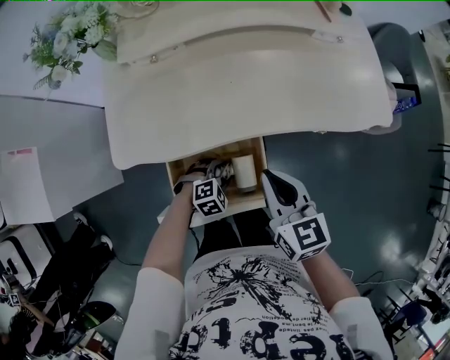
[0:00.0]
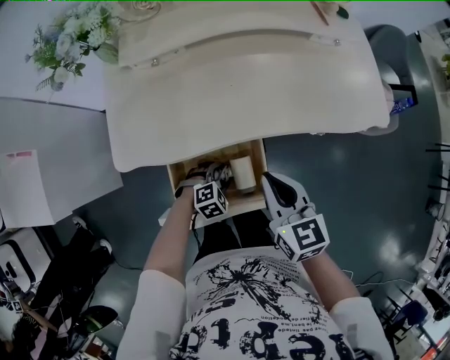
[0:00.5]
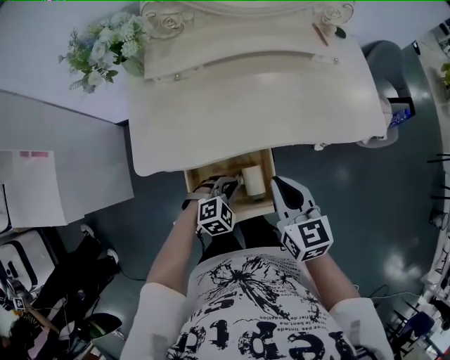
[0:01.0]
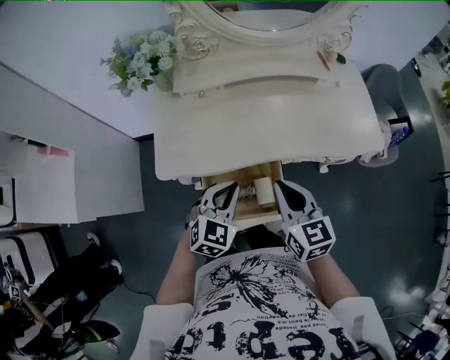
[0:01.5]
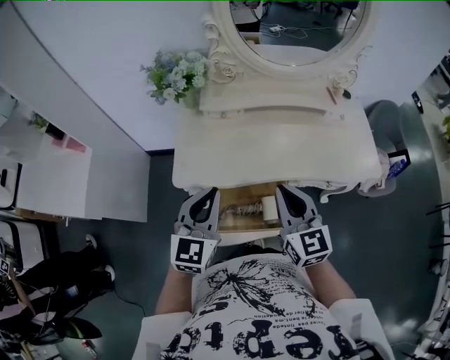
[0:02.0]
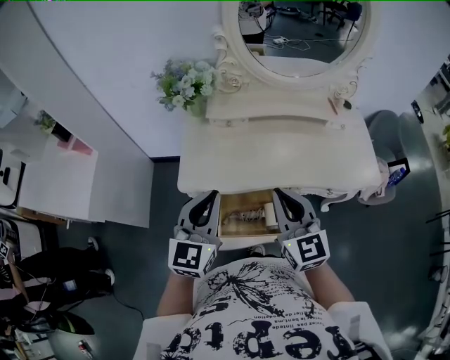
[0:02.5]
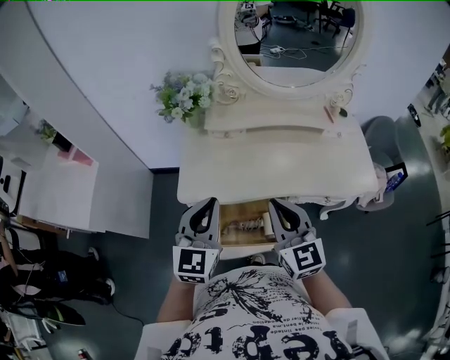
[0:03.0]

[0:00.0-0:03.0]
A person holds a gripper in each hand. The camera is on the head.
0:00.0 to 0:01.5: The right gripper goes approximately 10 cm upward. The left gripper travels upward by approximately 30 cm, points its fingers roughly 30 degrees further upward, and closes up.
0:01.5 to 0:03.0: The left gripper heads upward and to the left, covering about 20 cm, and turns by roughly 30 degrees. The right gripper heads upward and to the left, covering some 10 cm, and rotates about 20 degrees.

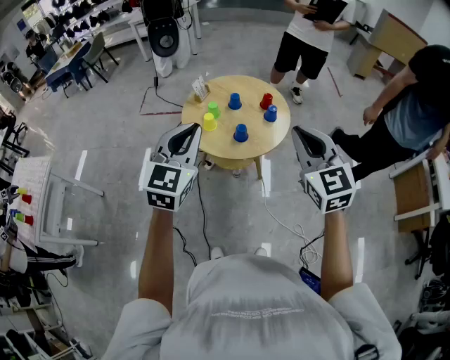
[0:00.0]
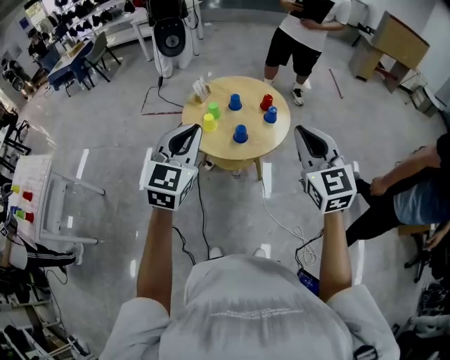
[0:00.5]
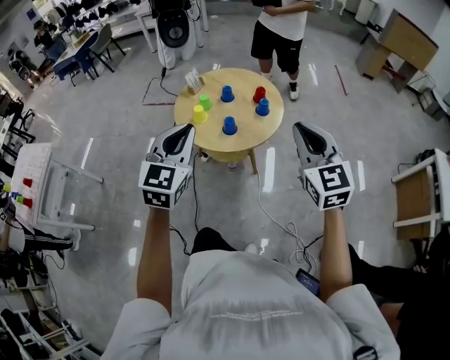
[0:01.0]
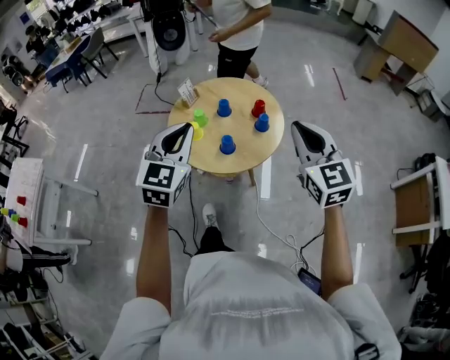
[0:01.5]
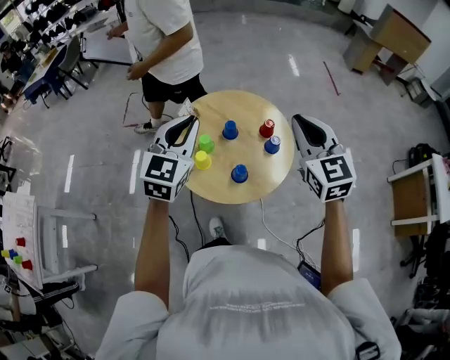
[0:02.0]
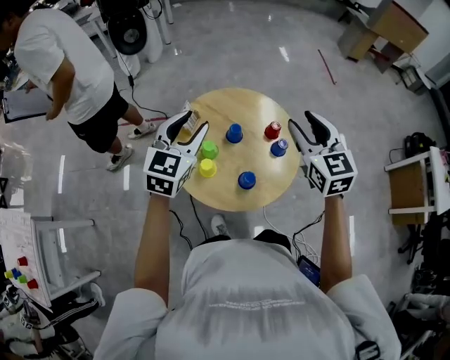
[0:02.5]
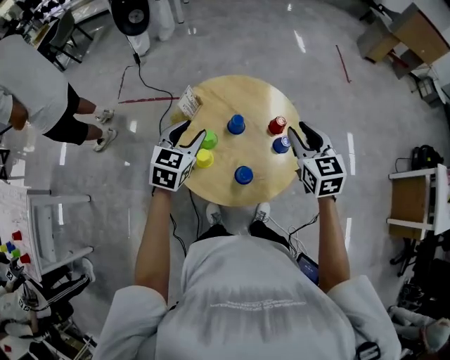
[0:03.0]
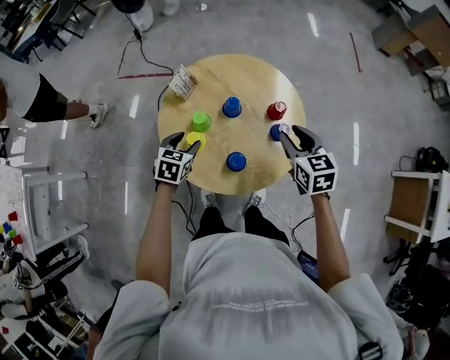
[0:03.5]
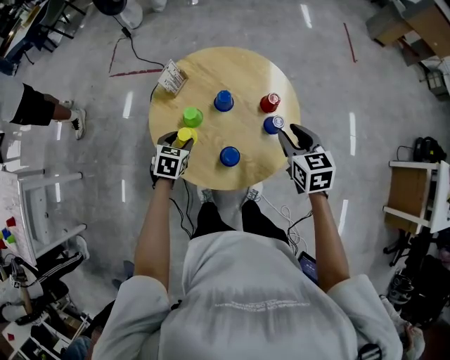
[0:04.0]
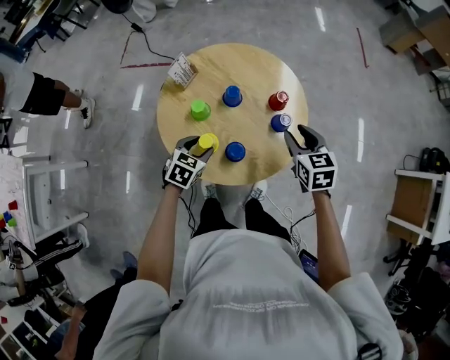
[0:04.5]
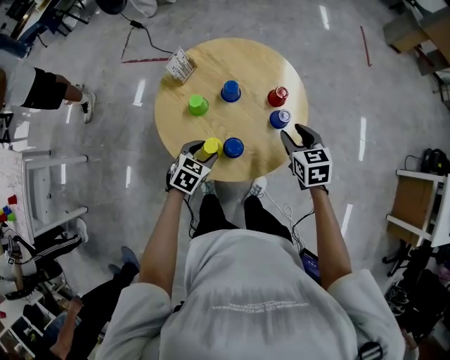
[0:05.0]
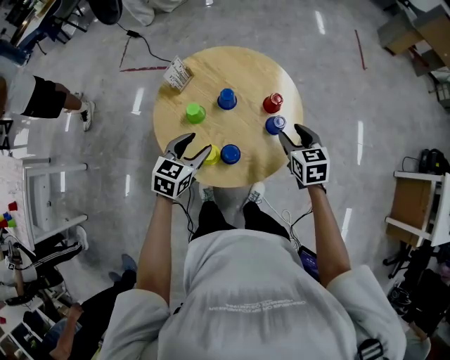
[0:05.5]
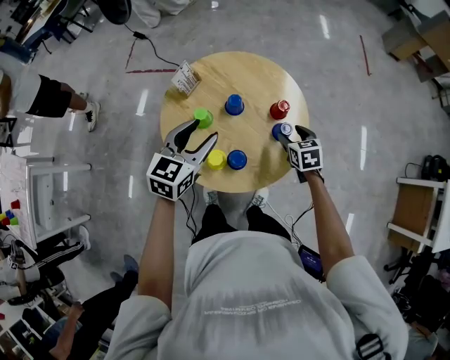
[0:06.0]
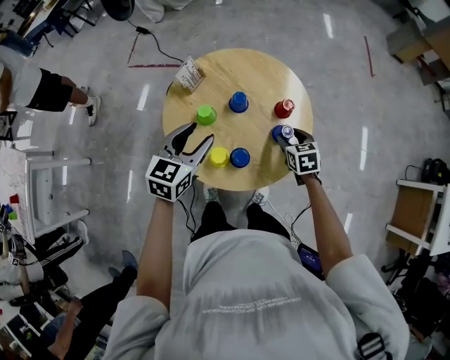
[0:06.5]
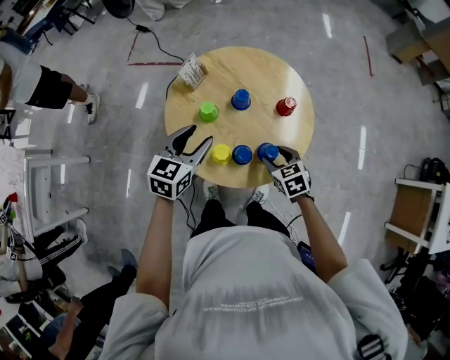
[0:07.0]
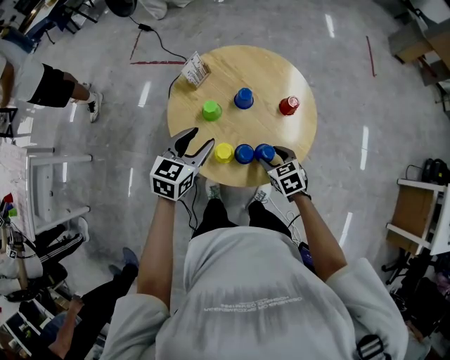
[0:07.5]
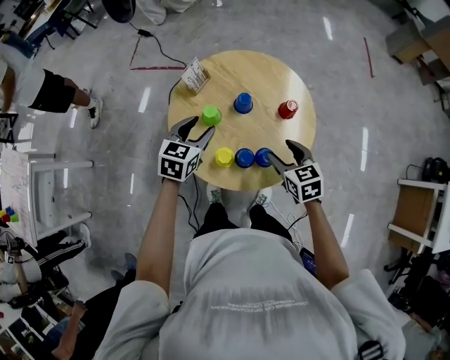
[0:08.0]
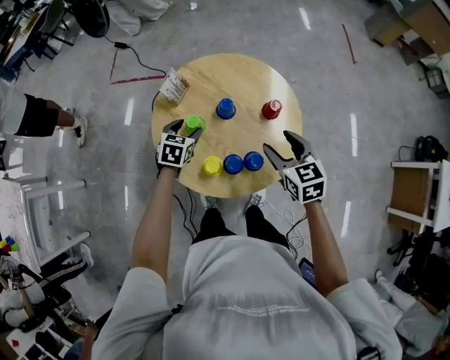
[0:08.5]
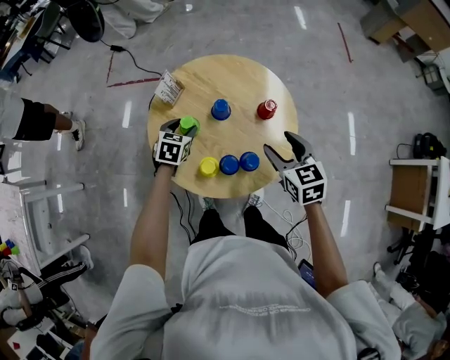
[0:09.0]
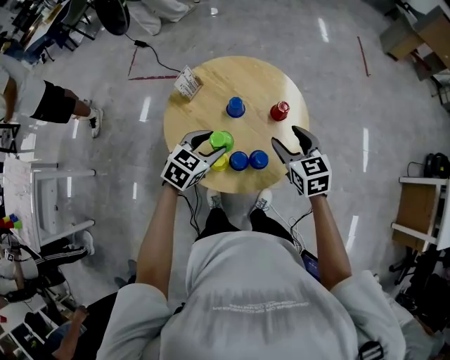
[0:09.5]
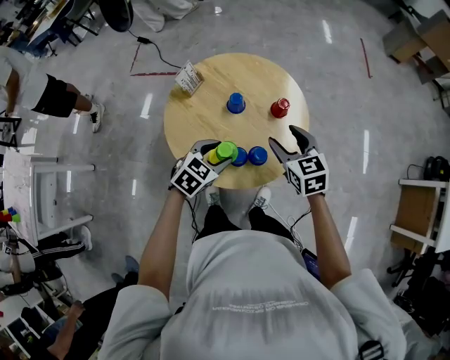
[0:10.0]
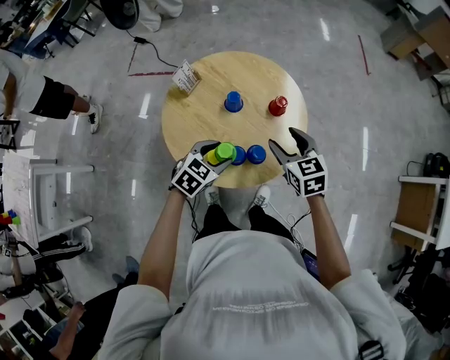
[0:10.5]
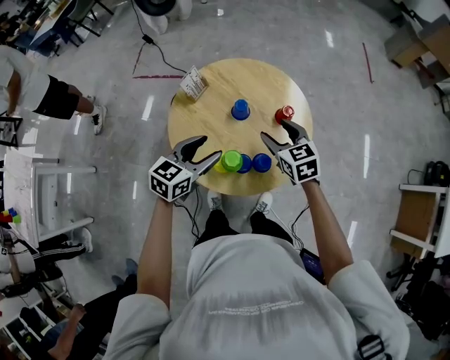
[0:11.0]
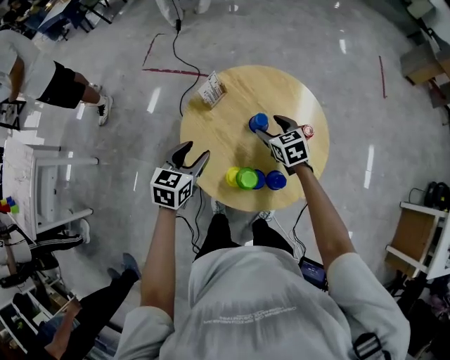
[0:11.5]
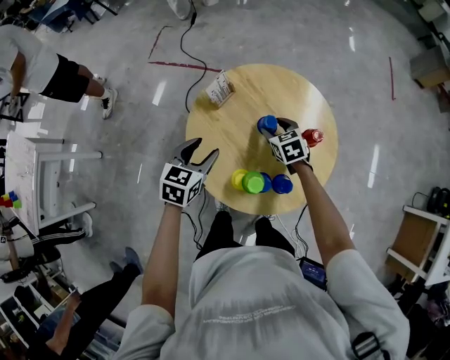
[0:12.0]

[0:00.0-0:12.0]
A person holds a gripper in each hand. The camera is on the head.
0:00.0 to 0:02.0: The grippers both shift forward by some 30 cm.
0:02.0 to 0:04.0: Both grippers travel together downward, some 30 cm. The left gripper points its fingers roughly 40 degrees further downward, and opens its fingers. The right gripper rotates roughly 30 degrees, and opens up.
0:04.0 to 0:06.0: The right gripper is displaced downward by some 10 cm, and opens its fingers. The left gripper moves upward, roughly 20 cm, and swivels roughly 30 degrees.
0:06.0 to 0:08.0: The right gripper goes some 15 cm to the left, backward and upward, while the left gripper travels downward by some 10 cm.
0:08.0 to 0:10.0: The left gripper travels to the right and backward by approximately 15 cm, and rotates approximately 30 degrees. The right gripper travels upward by about 5 cm.
0:10.0 to 0:12.0: The right gripper heads downward, forward and to the left, covering roughly 25 cm; the left gripper moves to the left and forward, roughly 20 cm, and changes its angle by about 30 degrees.

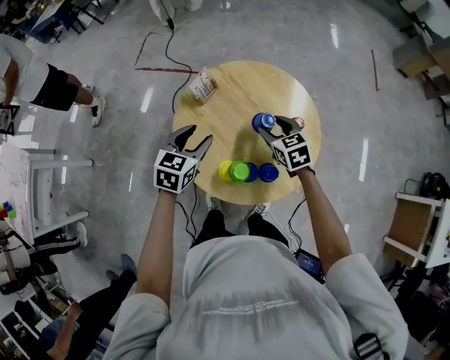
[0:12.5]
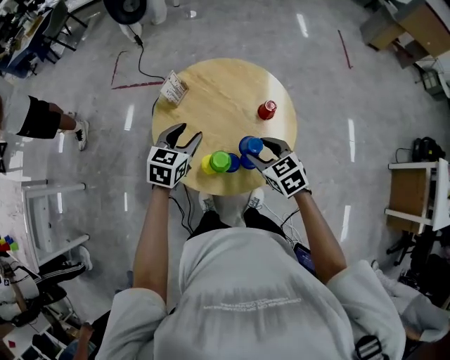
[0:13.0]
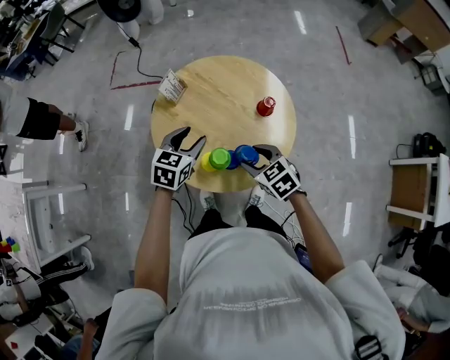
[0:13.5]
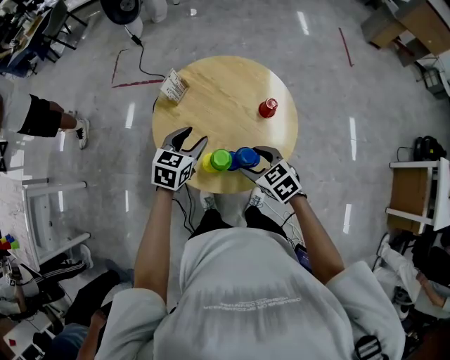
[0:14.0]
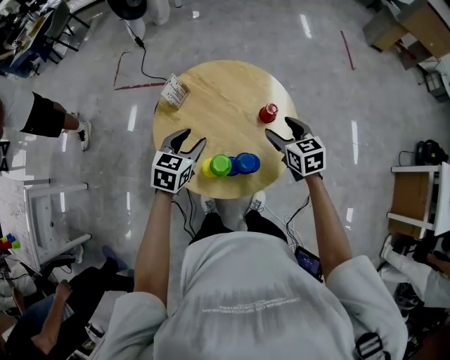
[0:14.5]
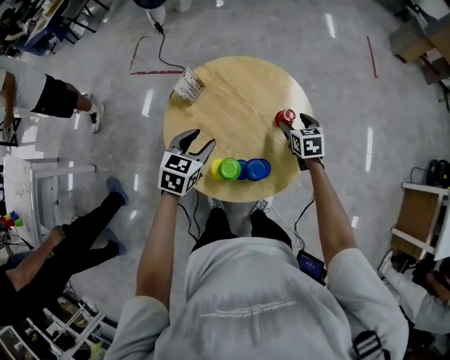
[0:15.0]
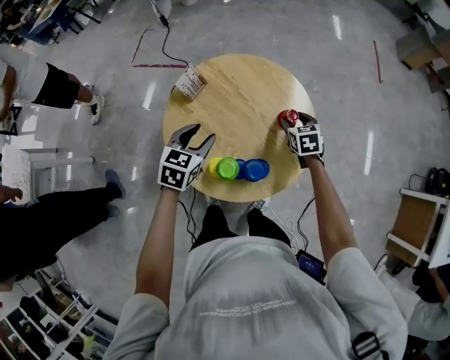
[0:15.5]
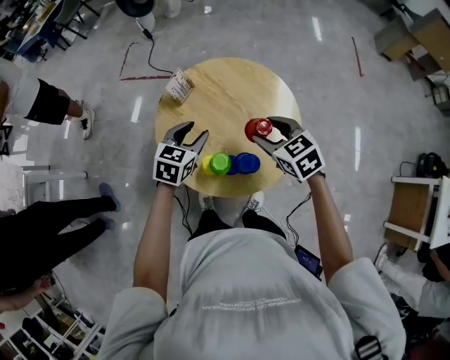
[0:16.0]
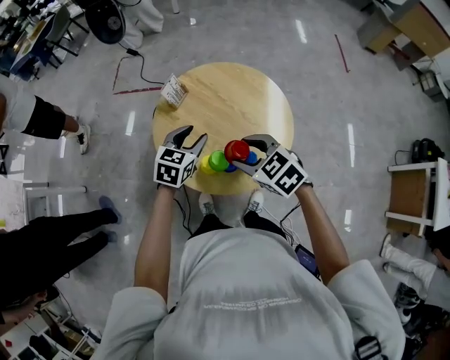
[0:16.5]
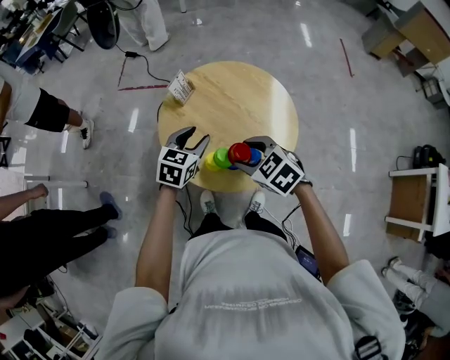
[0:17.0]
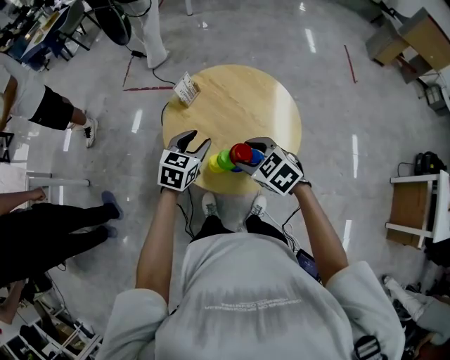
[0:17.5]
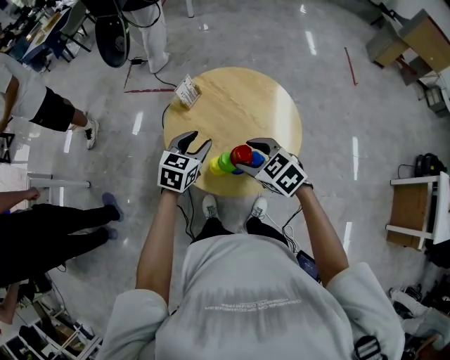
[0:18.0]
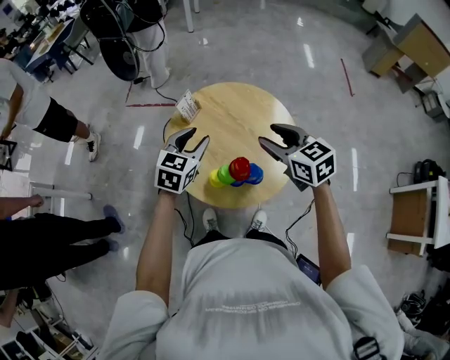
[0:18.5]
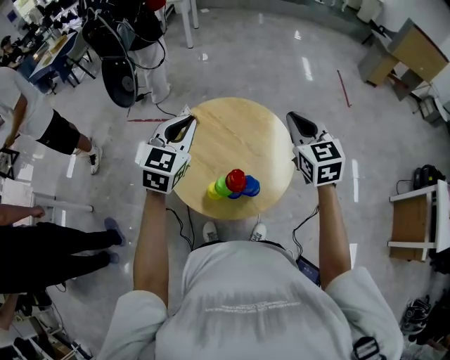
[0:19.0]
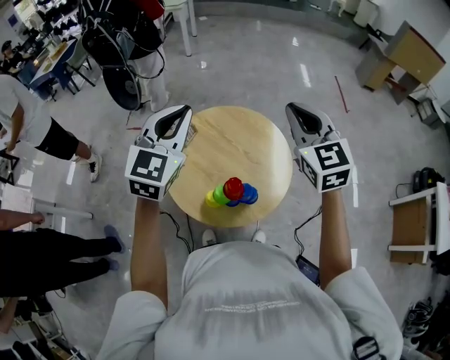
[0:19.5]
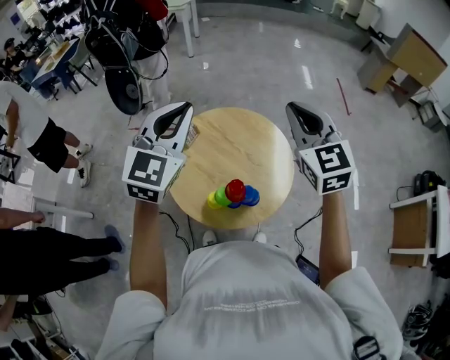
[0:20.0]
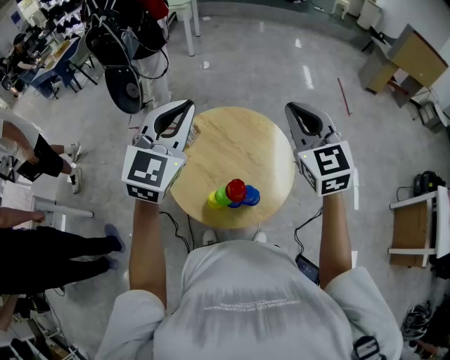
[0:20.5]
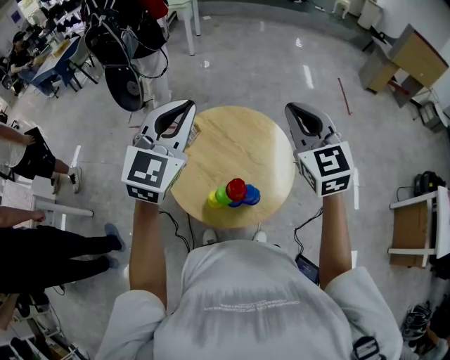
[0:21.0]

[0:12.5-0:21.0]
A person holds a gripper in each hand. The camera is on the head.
0:12.5 to 0:14.5: The right gripper shifts approximately 10 cm to the right, and moves about 15 cm backward and comes back, while the left gripper heads to the right, covering approximately 5 cm.
0:14.5 to 0:16.5: The right gripper shifts approximately 20 cm to the left, backward and upward, and changes its angle by approximately 30 degrees.
0:16.5 to 0:19.0: The right gripper heads upward, to the right and forward, covering about 25 cm, changes its angle by some 40 degrees, and closes; the left gripper moves upward, some 20 cm, changes its angle by about 20 degrees, and closes up.
0:19.0 to 0:21.0: The two grippers go approximately 10 cm upward.

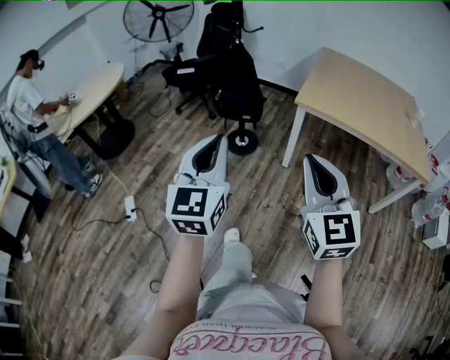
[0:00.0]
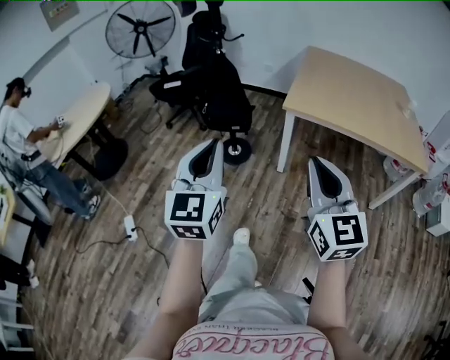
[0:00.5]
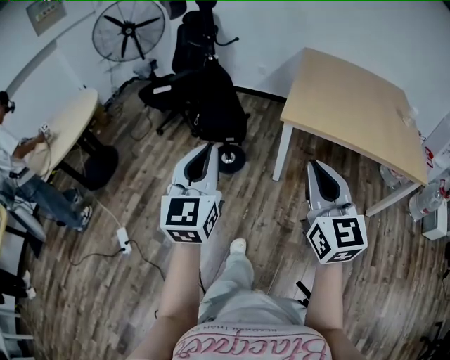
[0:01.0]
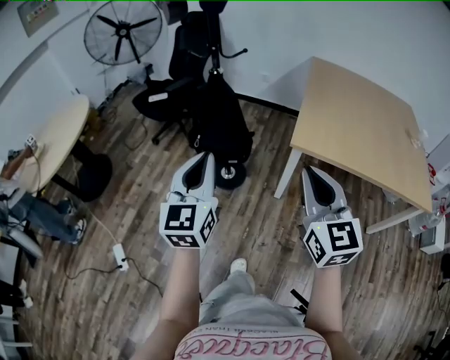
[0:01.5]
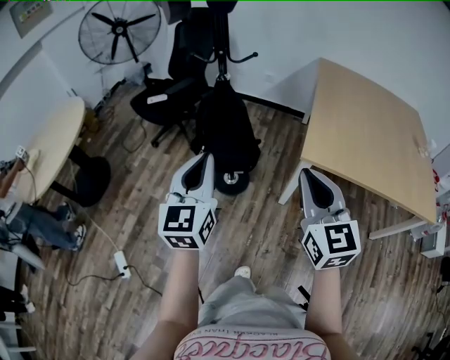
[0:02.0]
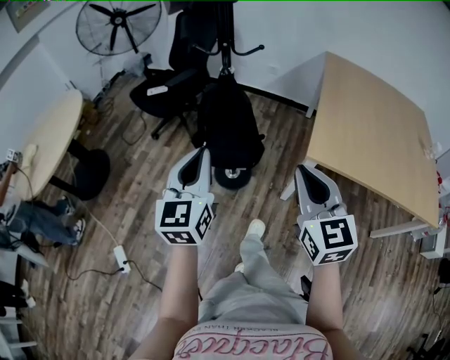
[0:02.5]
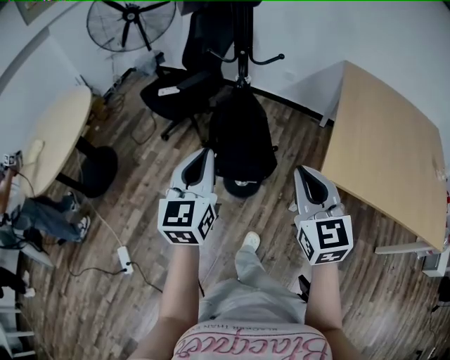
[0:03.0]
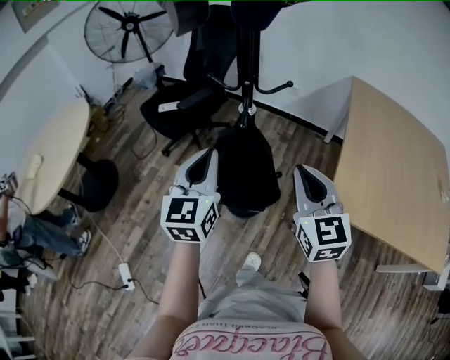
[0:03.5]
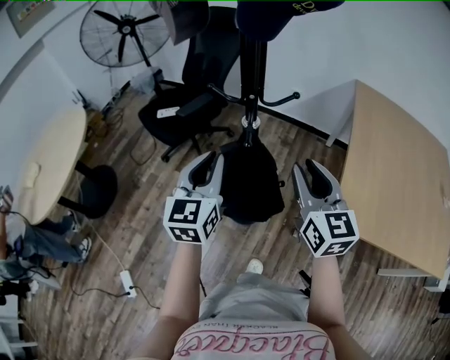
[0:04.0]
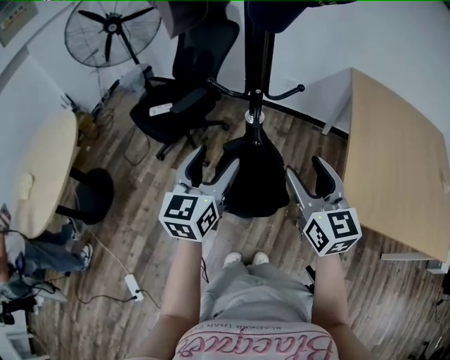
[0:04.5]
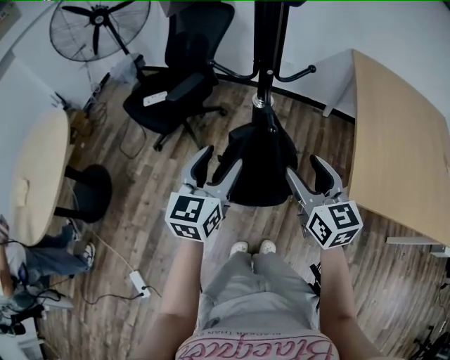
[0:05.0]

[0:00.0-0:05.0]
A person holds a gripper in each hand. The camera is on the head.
0:00.0 to 0:02.5: The two grippers go roughly 40 cm forward.
0:02.5 to 0:05.0: The two grippers go some 25 cm forward. The right gripper opens, while the left gripper opens its fingers.
